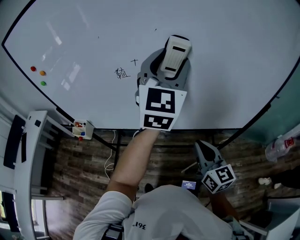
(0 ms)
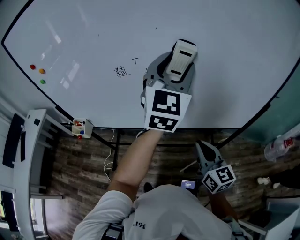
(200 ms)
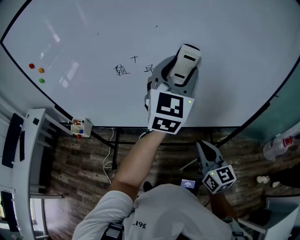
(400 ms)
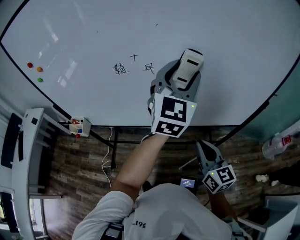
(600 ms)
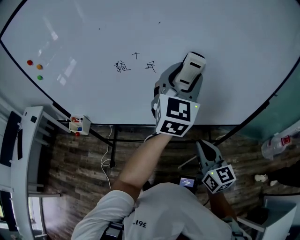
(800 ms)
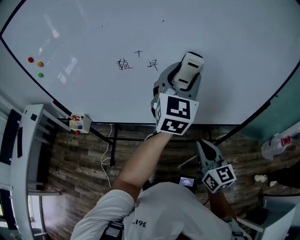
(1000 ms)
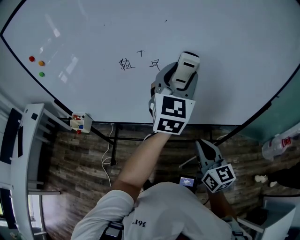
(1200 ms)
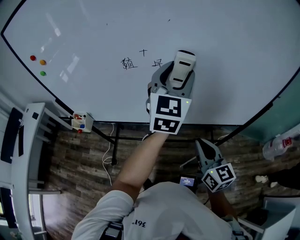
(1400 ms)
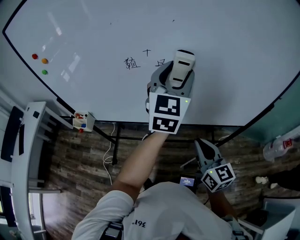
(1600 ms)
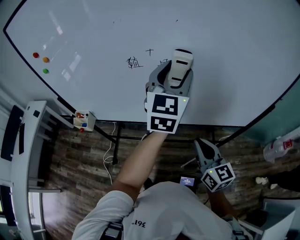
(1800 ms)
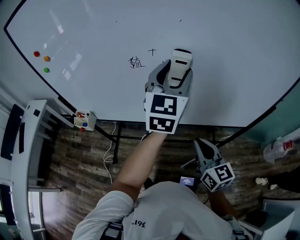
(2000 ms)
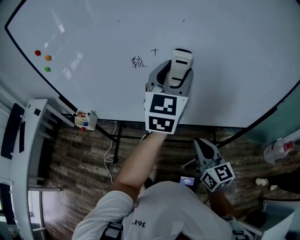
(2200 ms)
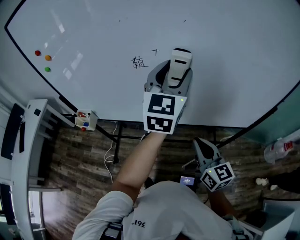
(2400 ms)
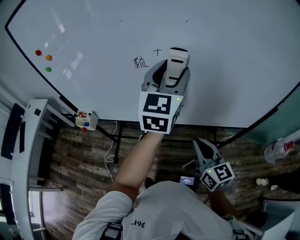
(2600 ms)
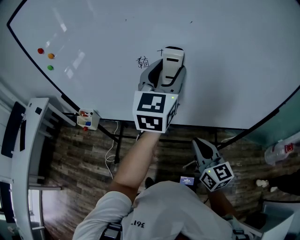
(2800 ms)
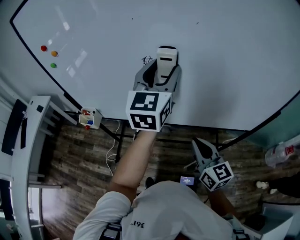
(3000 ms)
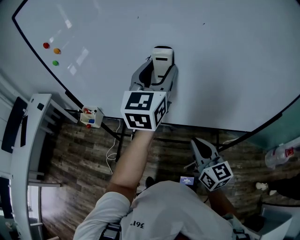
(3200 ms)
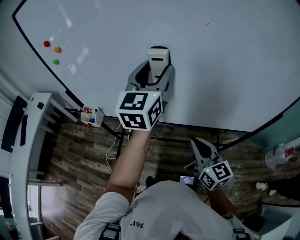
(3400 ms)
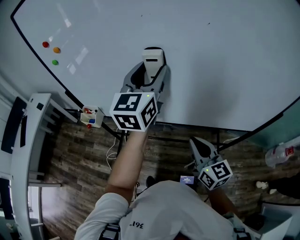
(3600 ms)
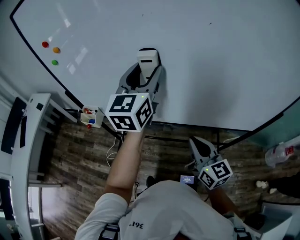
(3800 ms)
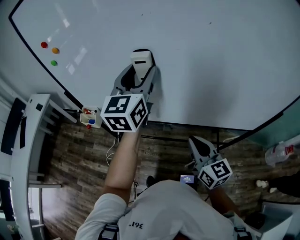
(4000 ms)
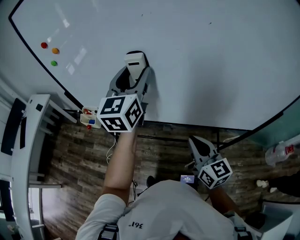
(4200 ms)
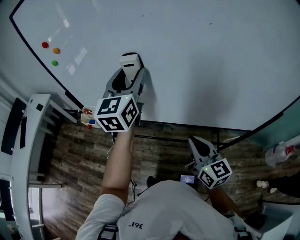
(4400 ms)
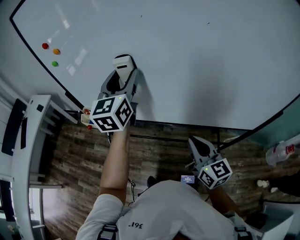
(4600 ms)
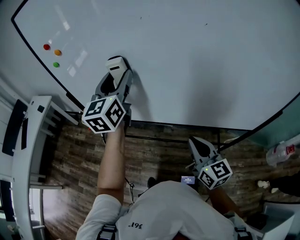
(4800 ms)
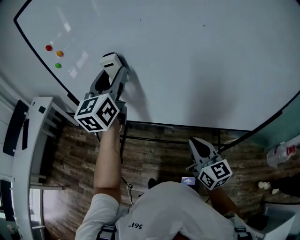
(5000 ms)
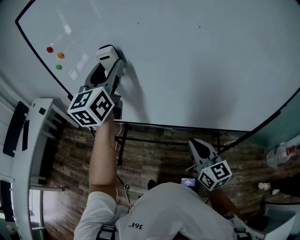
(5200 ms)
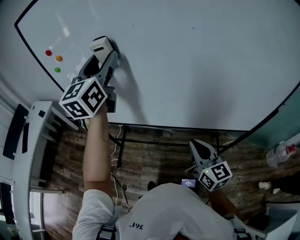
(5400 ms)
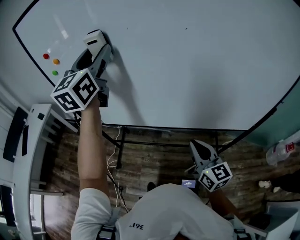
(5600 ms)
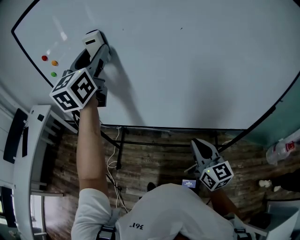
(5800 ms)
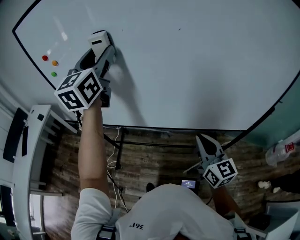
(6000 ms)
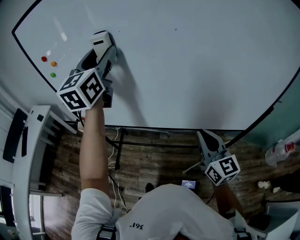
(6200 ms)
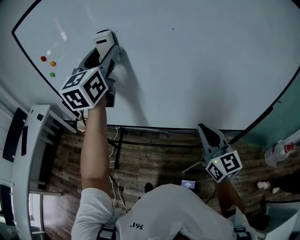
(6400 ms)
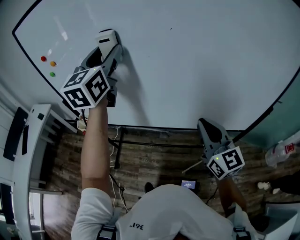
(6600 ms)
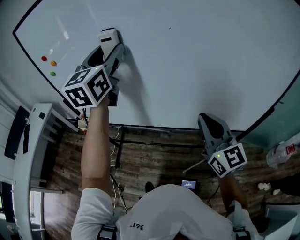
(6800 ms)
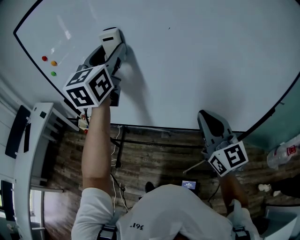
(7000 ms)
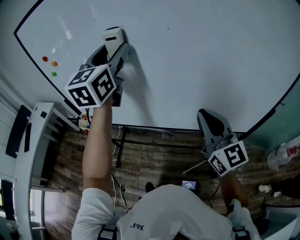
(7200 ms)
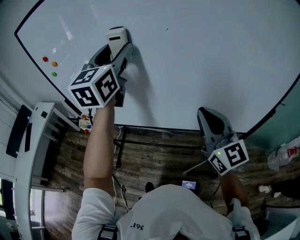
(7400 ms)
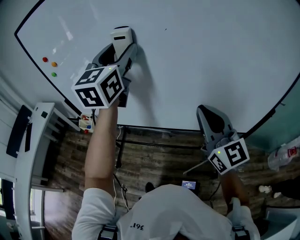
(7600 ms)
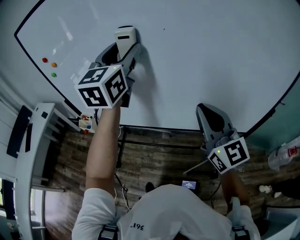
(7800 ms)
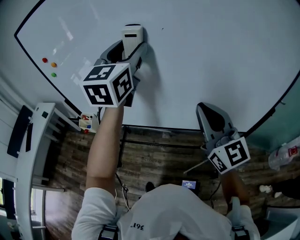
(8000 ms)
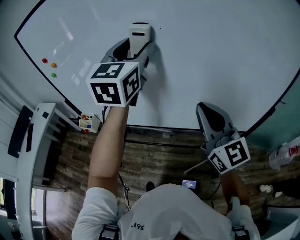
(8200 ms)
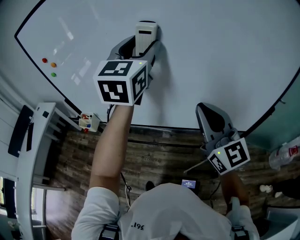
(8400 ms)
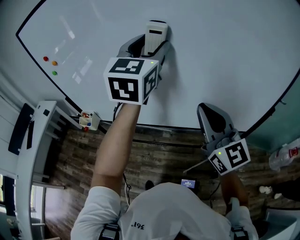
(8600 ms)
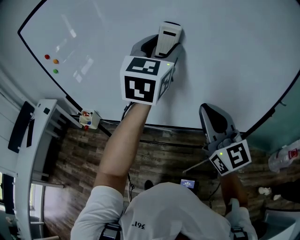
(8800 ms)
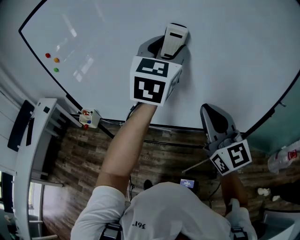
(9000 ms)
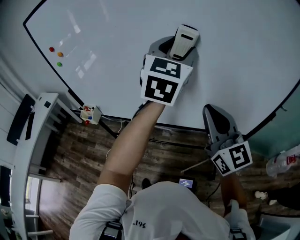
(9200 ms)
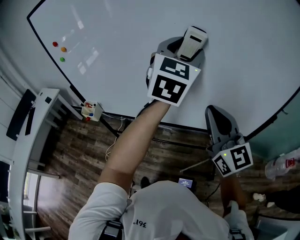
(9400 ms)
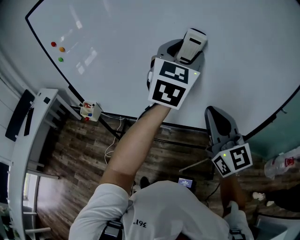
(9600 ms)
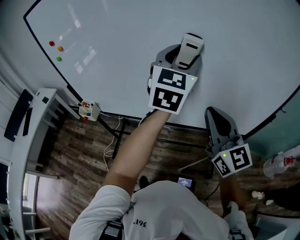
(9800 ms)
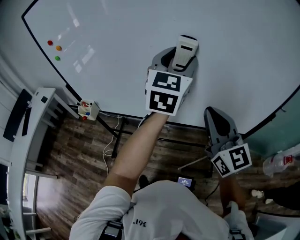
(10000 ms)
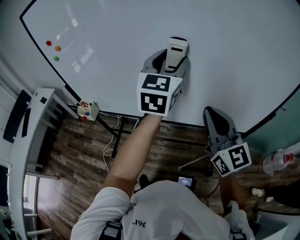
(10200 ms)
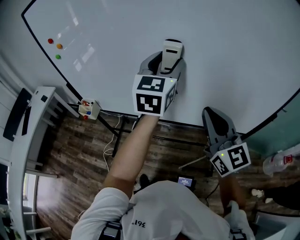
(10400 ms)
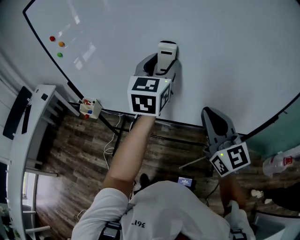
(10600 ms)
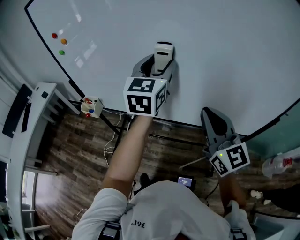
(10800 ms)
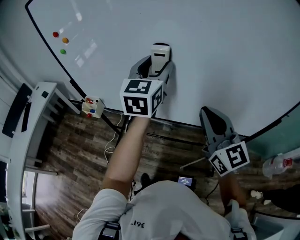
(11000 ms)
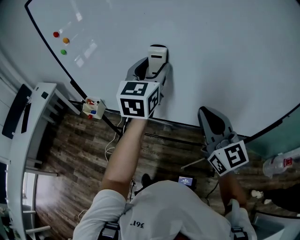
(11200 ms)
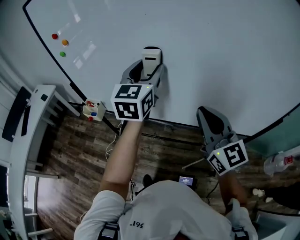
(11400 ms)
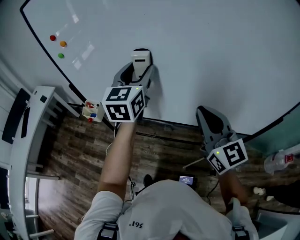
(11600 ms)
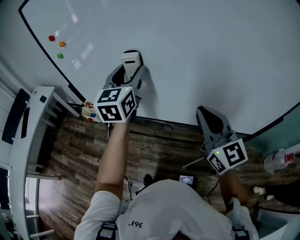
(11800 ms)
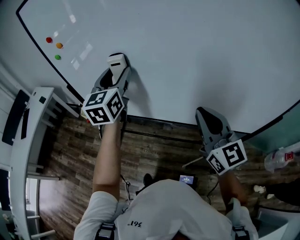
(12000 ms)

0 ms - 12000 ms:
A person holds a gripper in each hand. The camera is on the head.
0 ms - 1600 ms: The left gripper goes approximately 5 cm downward.
1600 ms - 3000 ms: The left gripper is displaced to the left by about 10 cm; the right gripper moves to the left, some 5 cm.
3000 ms - 4400 ms: The left gripper heads to the left, covering roughly 15 cm.
4400 ms - 6000 ms: The right gripper moves to the right, approximately 10 cm; the left gripper heads upward, covering roughly 15 cm.
6000 ms - 7600 ms: The right gripper heads upward, covering some 15 cm. Meanwhile the left gripper shifts roughly 10 cm to the right.
7600 ms - 9000 ms: The left gripper is displaced to the right by some 15 cm.
9000 ms - 10400 ms: The left gripper shifts approximately 10 cm downward and to the left.
10400 ms - 12000 ms: The left gripper moves to the left, approximately 20 cm. The right gripper heads to the left, covering roughly 5 cm.

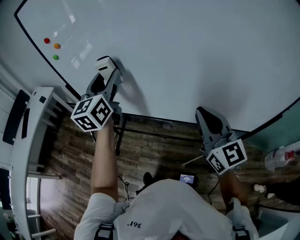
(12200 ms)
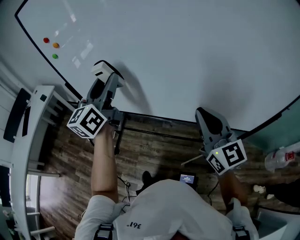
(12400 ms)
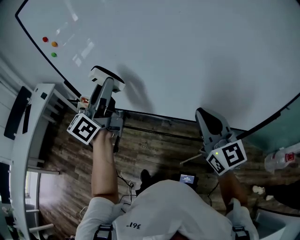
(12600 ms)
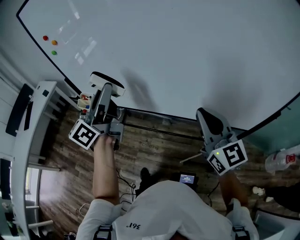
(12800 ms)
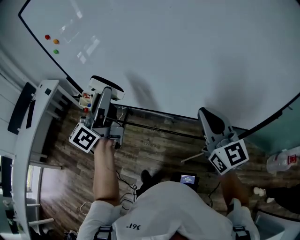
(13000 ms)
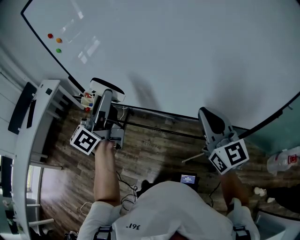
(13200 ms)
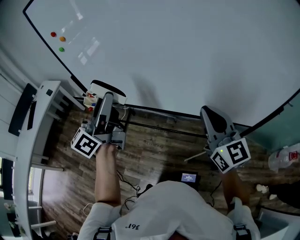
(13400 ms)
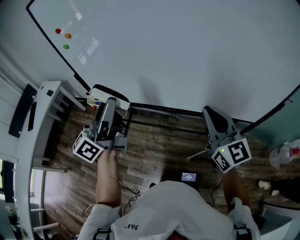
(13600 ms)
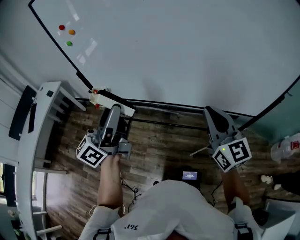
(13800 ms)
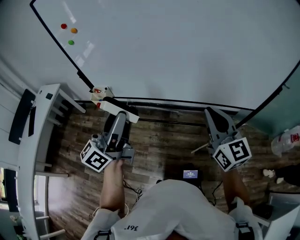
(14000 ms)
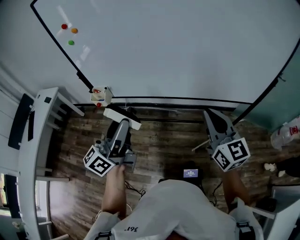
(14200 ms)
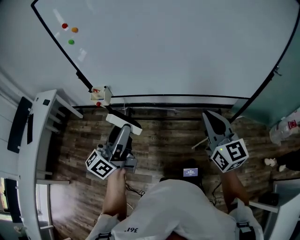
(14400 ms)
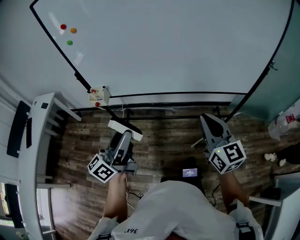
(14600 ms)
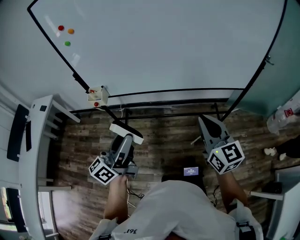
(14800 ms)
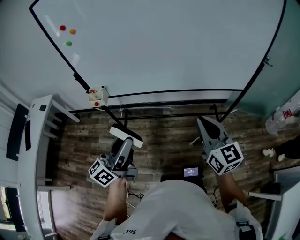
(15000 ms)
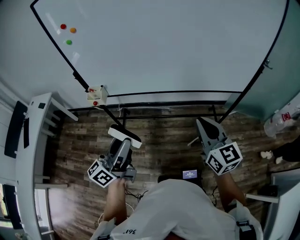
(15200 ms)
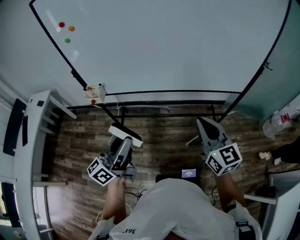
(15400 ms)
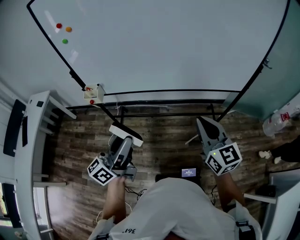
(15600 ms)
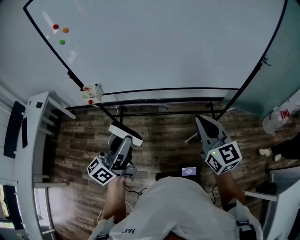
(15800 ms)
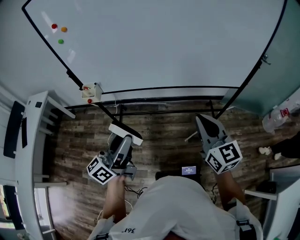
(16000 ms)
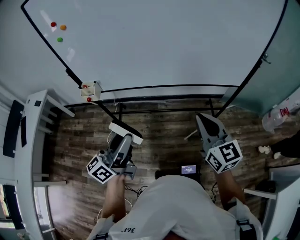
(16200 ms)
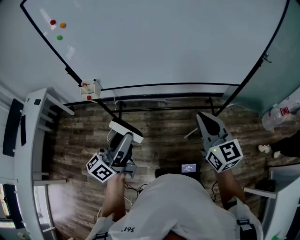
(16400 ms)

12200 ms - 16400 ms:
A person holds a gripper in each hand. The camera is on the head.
12200 ms - 13600 ms: The right gripper moves backward, roughly 5 cm; the left gripper shifts approximately 20 cm backward, and swivels about 40 degrees.
13600 ms - 15000 ms: The left gripper moves backward and downward, about 20 cm. Meanwhile the right gripper moves backward, about 20 cm.
15000 ms - 16400 ms: There are only small adjustments of the grippers.

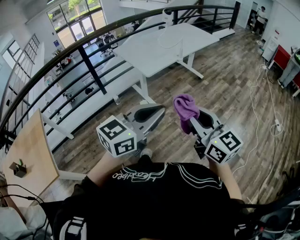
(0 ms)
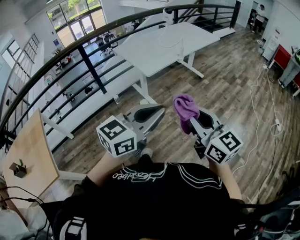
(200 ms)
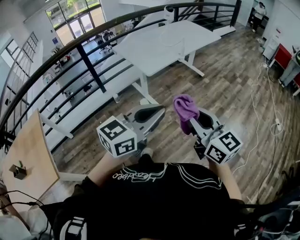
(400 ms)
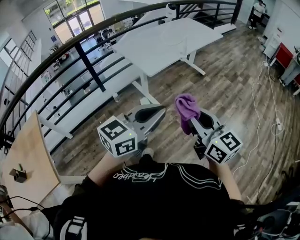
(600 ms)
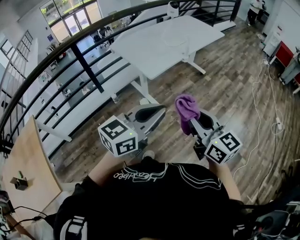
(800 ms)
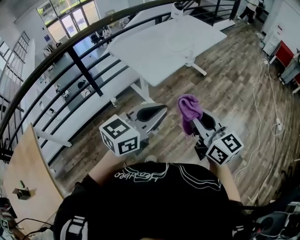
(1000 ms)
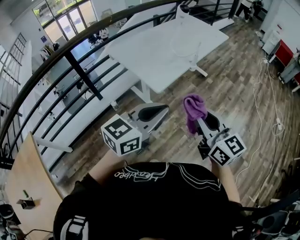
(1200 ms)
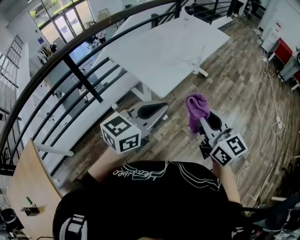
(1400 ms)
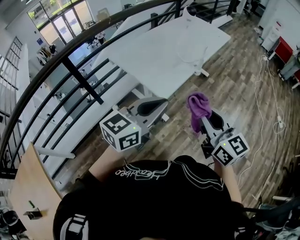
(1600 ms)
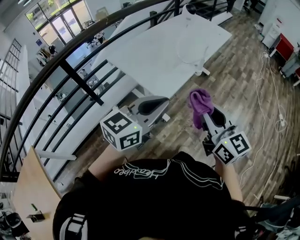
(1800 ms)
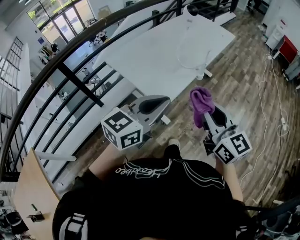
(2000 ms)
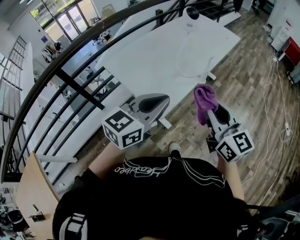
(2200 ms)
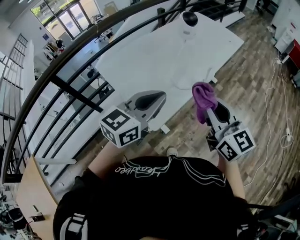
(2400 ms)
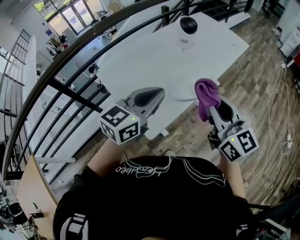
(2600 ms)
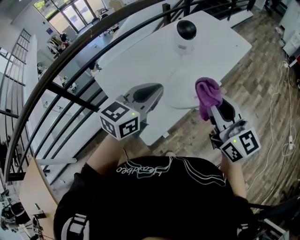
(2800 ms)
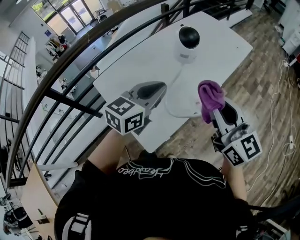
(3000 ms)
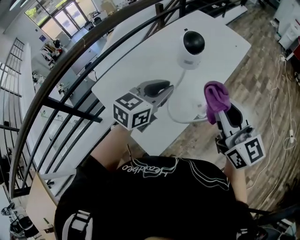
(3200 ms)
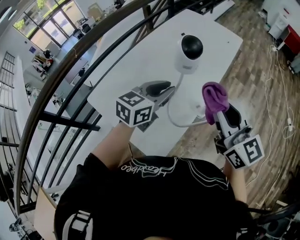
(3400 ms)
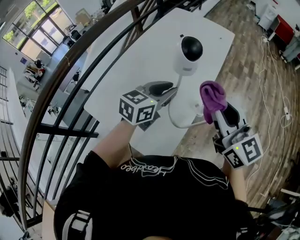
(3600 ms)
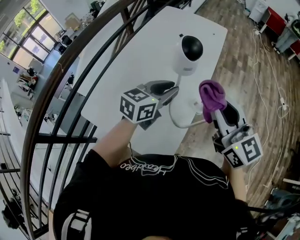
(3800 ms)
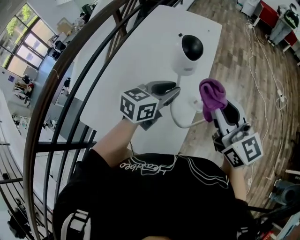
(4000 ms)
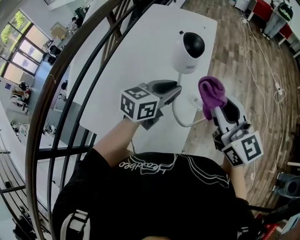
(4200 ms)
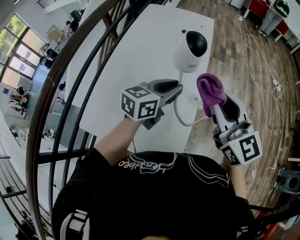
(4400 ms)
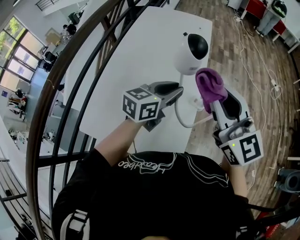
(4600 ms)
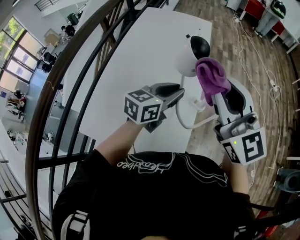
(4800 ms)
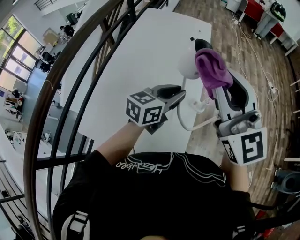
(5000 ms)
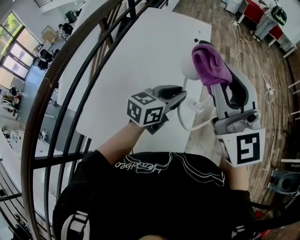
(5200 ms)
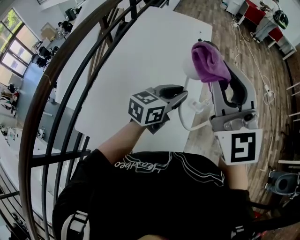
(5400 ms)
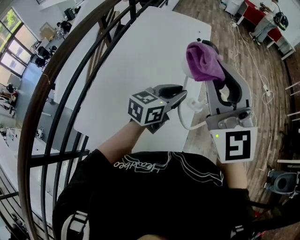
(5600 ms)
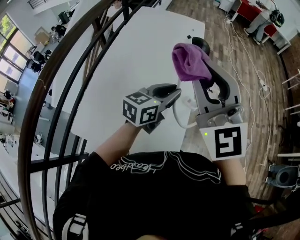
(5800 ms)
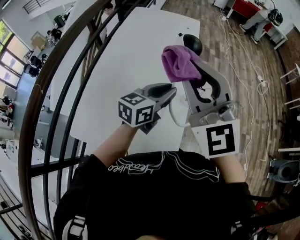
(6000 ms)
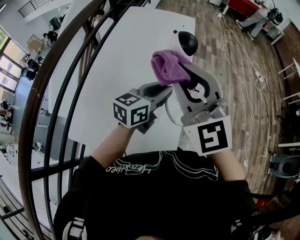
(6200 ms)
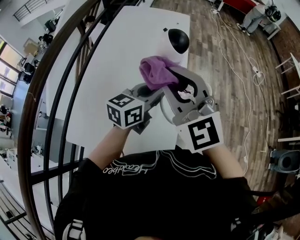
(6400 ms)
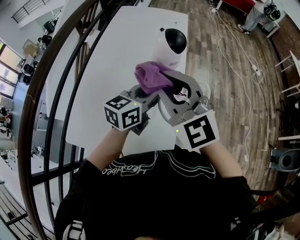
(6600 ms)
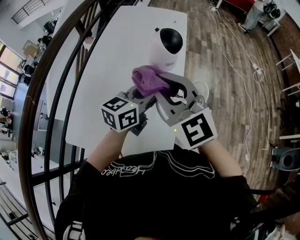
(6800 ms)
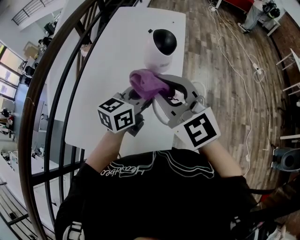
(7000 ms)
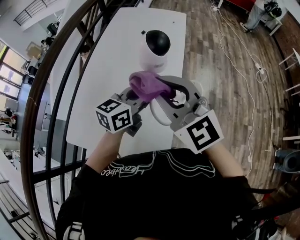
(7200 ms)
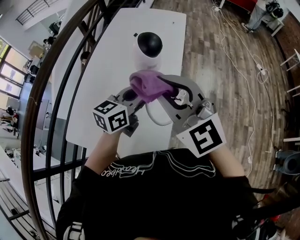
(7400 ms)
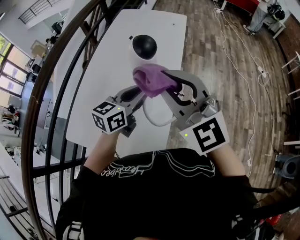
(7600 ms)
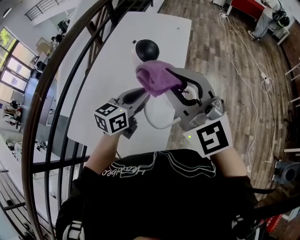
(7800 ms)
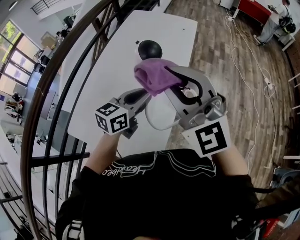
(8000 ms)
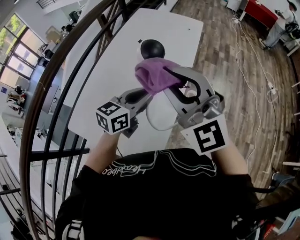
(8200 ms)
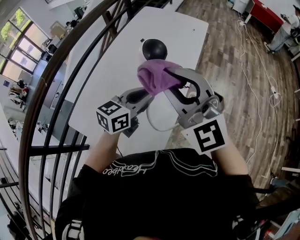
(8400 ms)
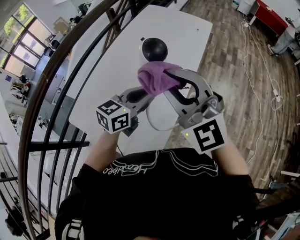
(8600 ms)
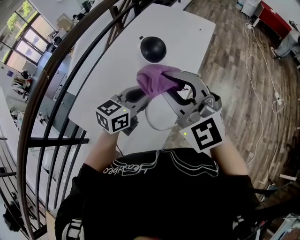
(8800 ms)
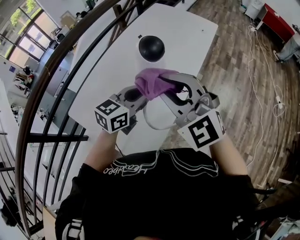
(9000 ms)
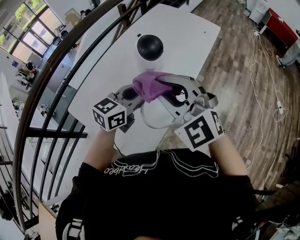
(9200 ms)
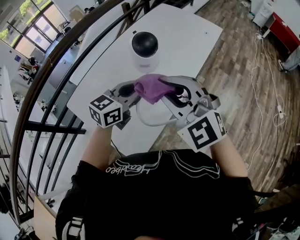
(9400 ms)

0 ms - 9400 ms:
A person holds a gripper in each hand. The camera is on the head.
0 ms - 1600 ms: Both grippers travel together forward and to the left, roughly 40 cm.
1600 ms - 3200 ms: The two grippers travel together, forward, approximately 50 cm.
3200 ms - 4800 ms: The right gripper shifts by about 10 cm, and rotates approximately 30 degrees; the left gripper shifts by some 5 cm, and turns by about 30 degrees.
4800 ms - 6200 ms: The right gripper goes about 5 cm to the left.
6200 ms - 7800 ms: The right gripper goes approximately 10 cm to the right.
7800 ms - 9400 ms: The right gripper travels downward by some 5 cm, and turns by approximately 30 degrees.
